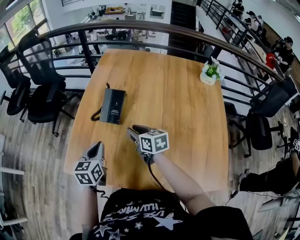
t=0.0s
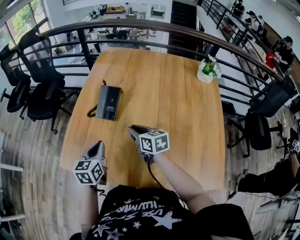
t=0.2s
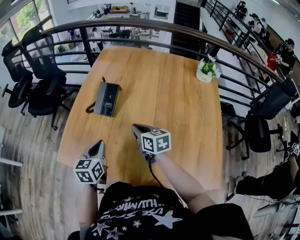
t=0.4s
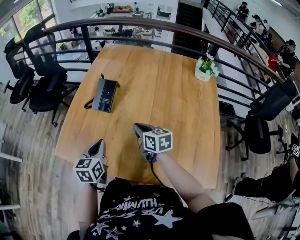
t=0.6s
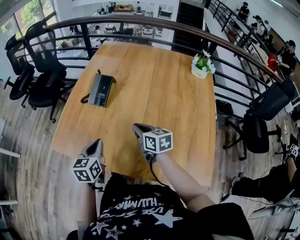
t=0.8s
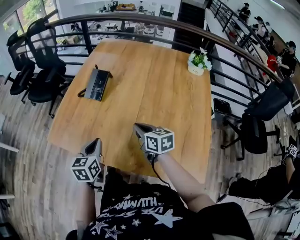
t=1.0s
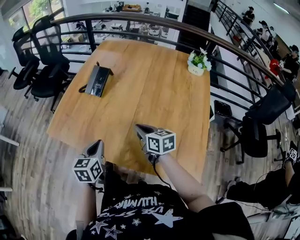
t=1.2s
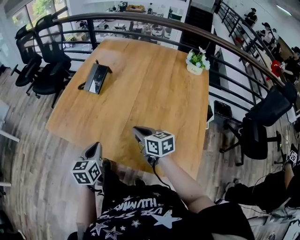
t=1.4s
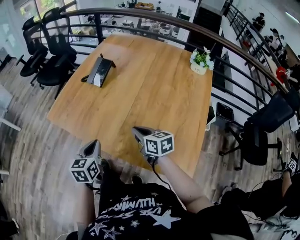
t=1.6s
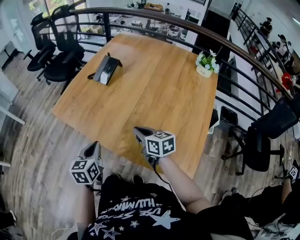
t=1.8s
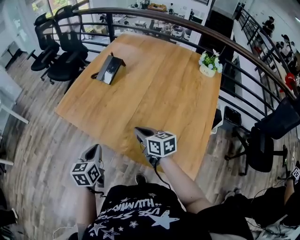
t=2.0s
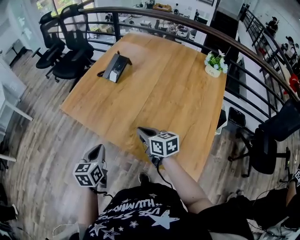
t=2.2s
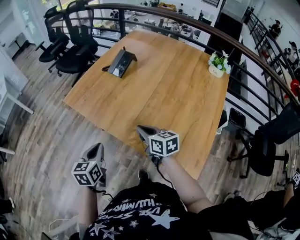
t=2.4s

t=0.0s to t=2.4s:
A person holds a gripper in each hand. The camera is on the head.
t=0.0s to t=1.2s: Both grippers move backward and to the right, roughly 25 cm.
t=1.2s to t=2.4s: Both grippers travel together backward and to the left, roughly 15 cm.

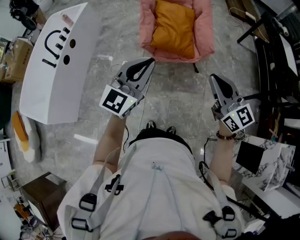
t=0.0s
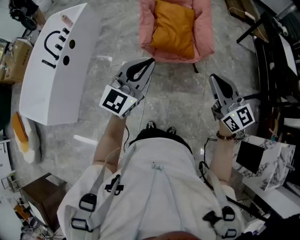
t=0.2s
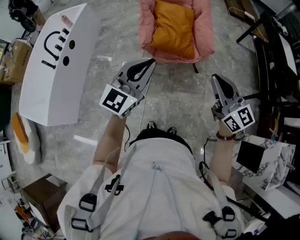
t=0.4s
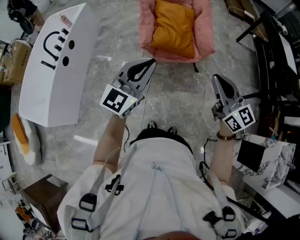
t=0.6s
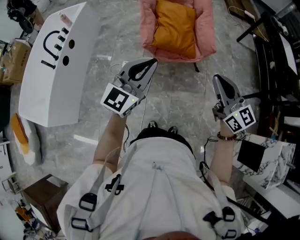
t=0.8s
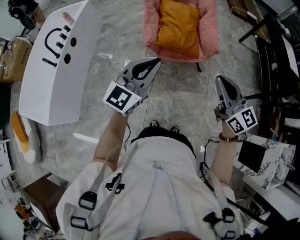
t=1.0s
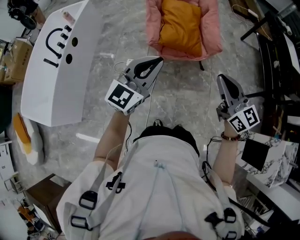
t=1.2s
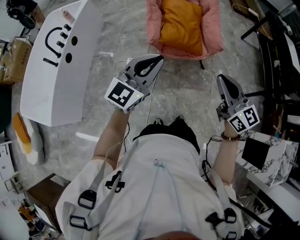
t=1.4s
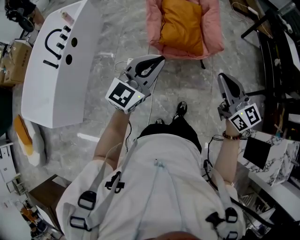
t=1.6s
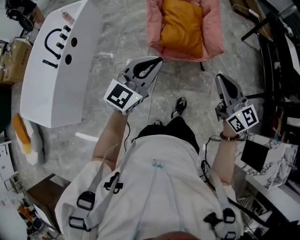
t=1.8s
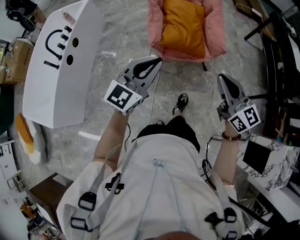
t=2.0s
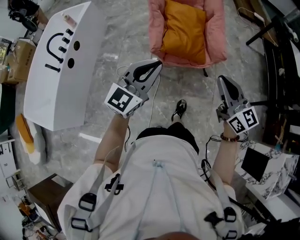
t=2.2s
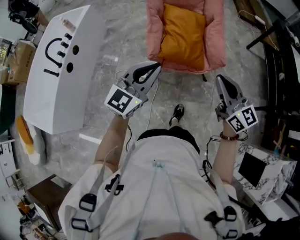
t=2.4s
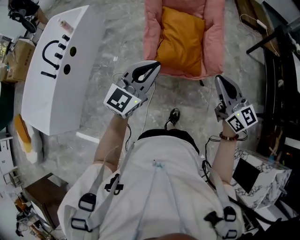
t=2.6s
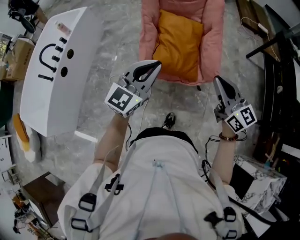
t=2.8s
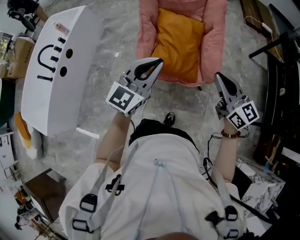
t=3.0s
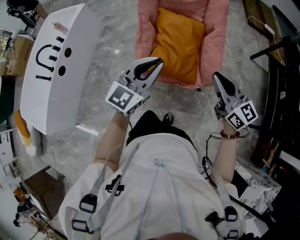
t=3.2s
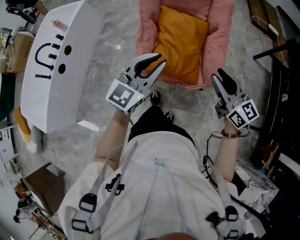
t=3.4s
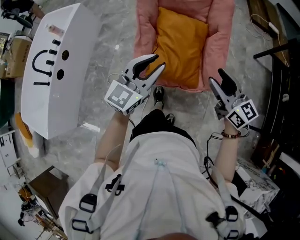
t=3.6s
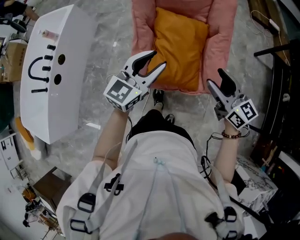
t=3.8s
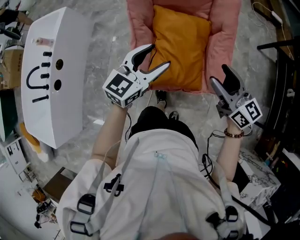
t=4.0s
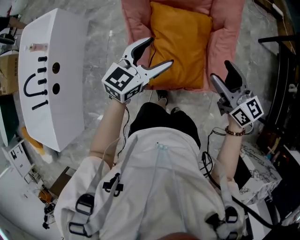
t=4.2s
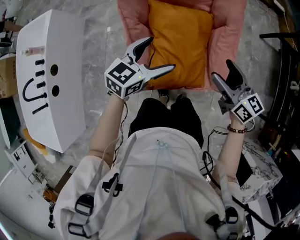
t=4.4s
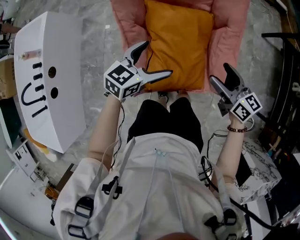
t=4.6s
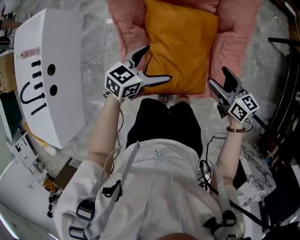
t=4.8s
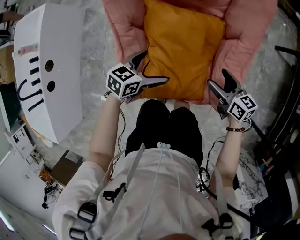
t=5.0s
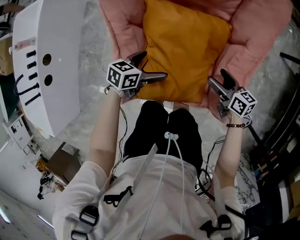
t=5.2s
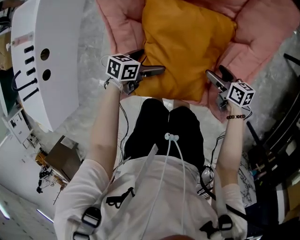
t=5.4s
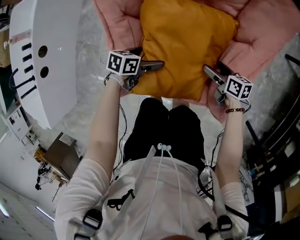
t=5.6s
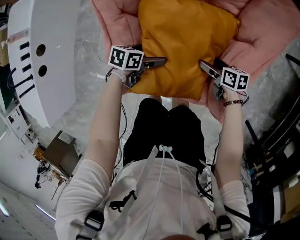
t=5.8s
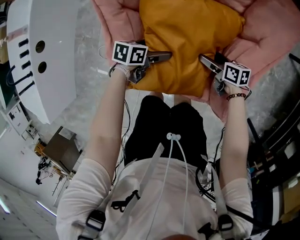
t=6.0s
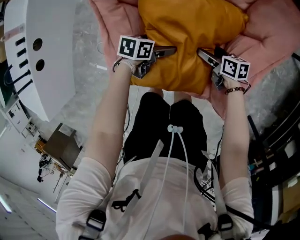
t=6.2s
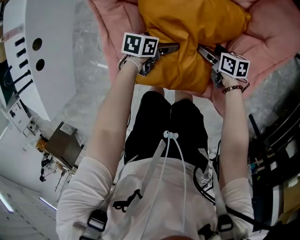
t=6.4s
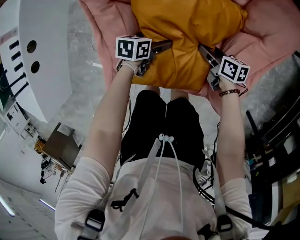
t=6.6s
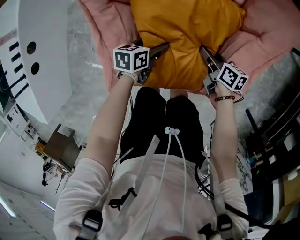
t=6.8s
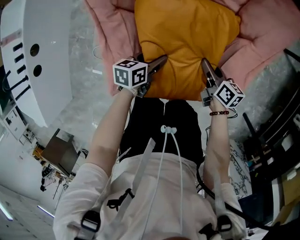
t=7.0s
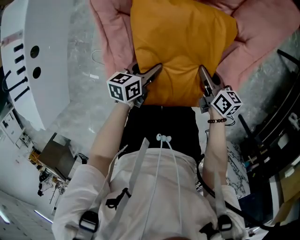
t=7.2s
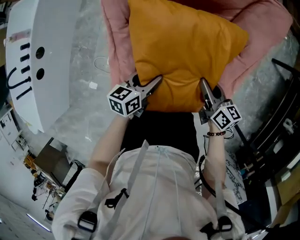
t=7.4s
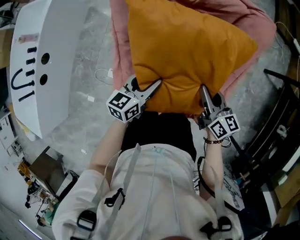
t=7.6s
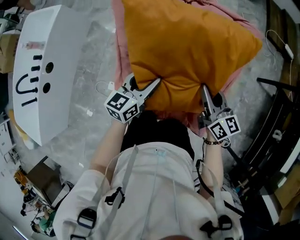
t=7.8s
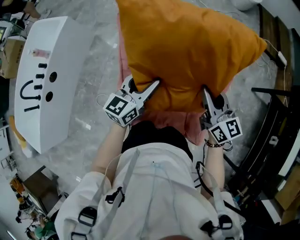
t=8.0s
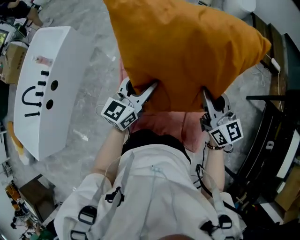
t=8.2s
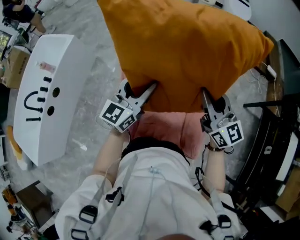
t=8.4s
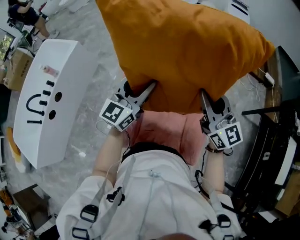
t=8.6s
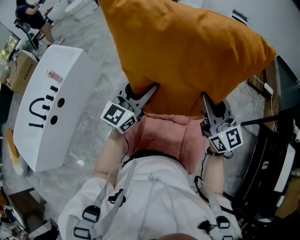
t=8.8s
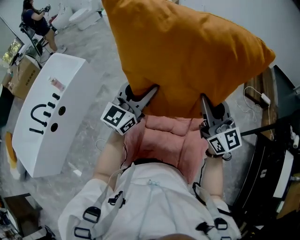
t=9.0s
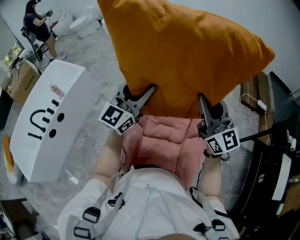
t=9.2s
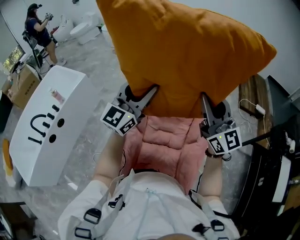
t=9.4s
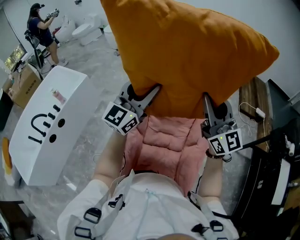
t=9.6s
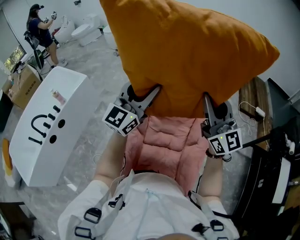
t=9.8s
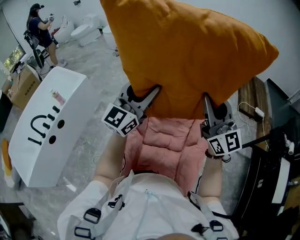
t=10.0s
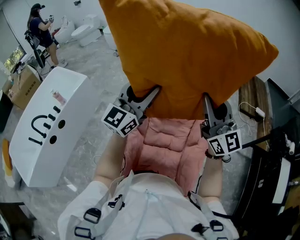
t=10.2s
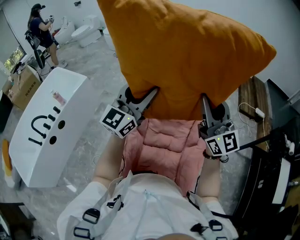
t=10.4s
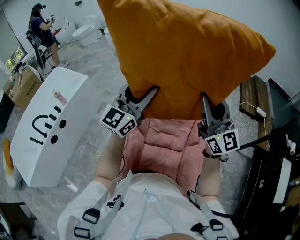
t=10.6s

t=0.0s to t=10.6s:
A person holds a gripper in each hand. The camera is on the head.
t=0.0s to t=1.6s: Both grippers move to the left, some 5 cm.
t=1.6s to t=3.0s: The right gripper is displaced forward by some 30 cm. Meanwhile the left gripper is displaced forward and to the right by approximately 30 cm.
t=3.0s to t=4.6s: Both grippers travel together forward and downward, roughly 40 cm. The left gripper turns by about 40 degrees, and opens its fingers, while the right gripper changes its angle by approximately 30 degrees, and opens its fingers.
t=4.6s to t=6.0s: The two grippers go approximately 35 cm downward. The right gripper turns by about 40 degrees; the left gripper twists some 40 degrees counterclockwise, seen from behind.
t=6.0s to t=7.6s: Both grippers travel together upward, roughly 25 cm. The left gripper changes its angle by approximately 40 degrees, and closes up, while the right gripper swivels about 40 degrees, and closes.
t=7.6s to t=9.0s: Both grippers move upward, roughly 40 cm. The right gripper angles its fingers upward, by roughly 30 degrees, while the left gripper points its fingers some 40 degrees further upward.
t=9.0s to t=10.6s: The two grippers go roughly 10 cm upward.

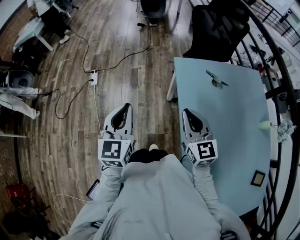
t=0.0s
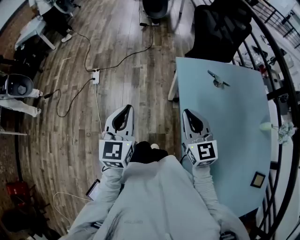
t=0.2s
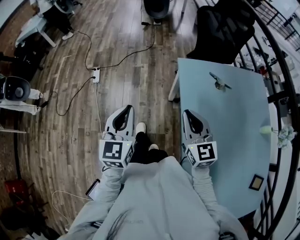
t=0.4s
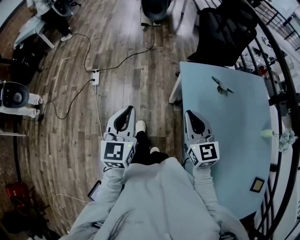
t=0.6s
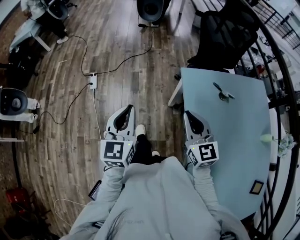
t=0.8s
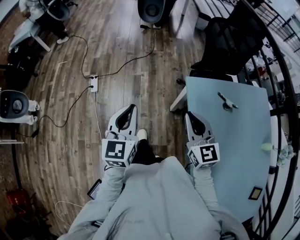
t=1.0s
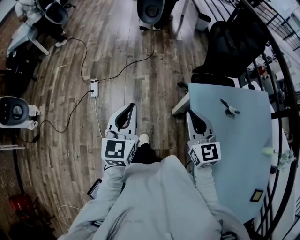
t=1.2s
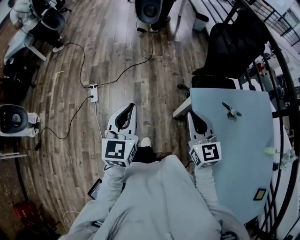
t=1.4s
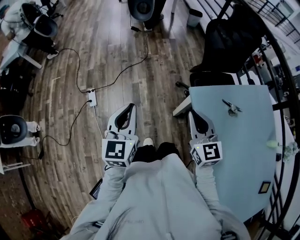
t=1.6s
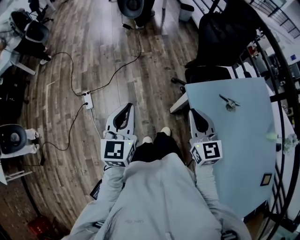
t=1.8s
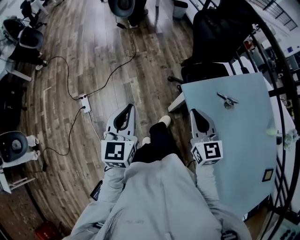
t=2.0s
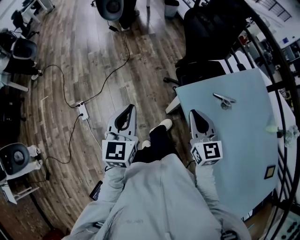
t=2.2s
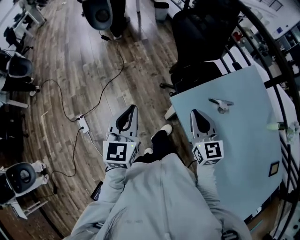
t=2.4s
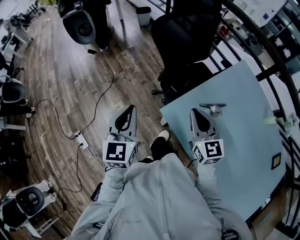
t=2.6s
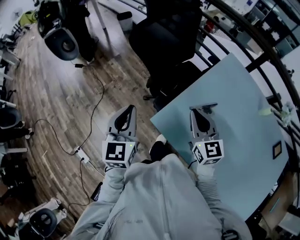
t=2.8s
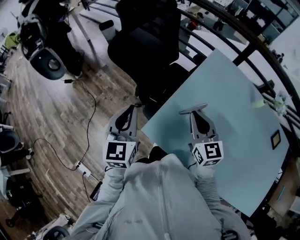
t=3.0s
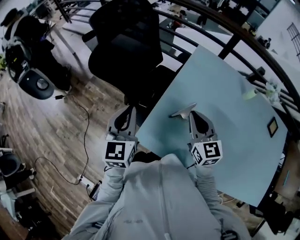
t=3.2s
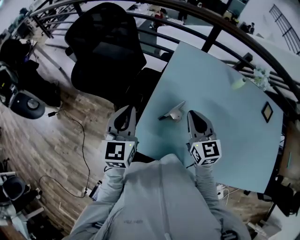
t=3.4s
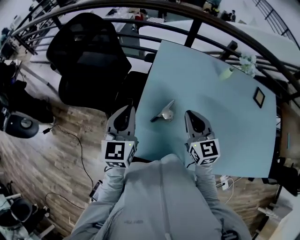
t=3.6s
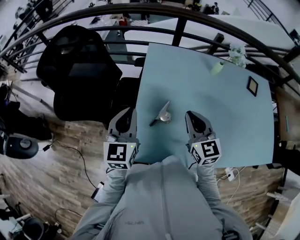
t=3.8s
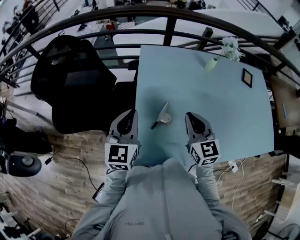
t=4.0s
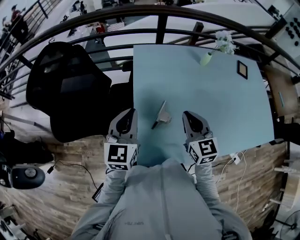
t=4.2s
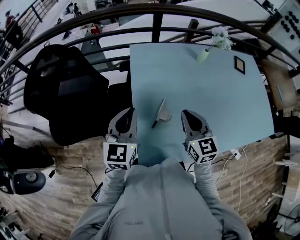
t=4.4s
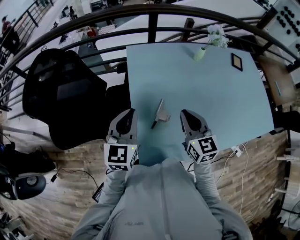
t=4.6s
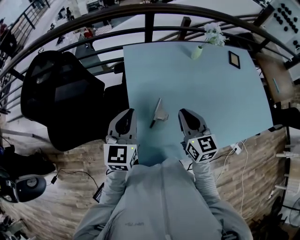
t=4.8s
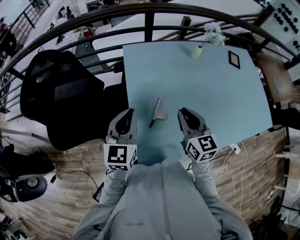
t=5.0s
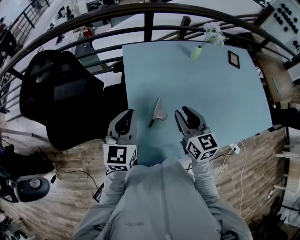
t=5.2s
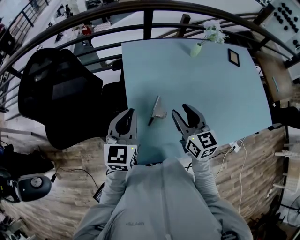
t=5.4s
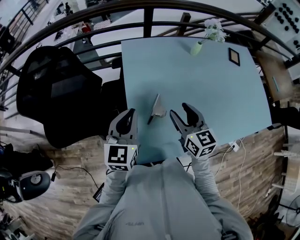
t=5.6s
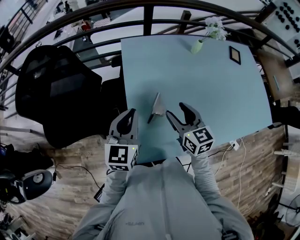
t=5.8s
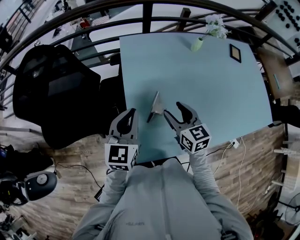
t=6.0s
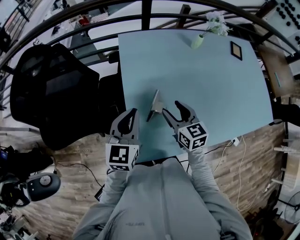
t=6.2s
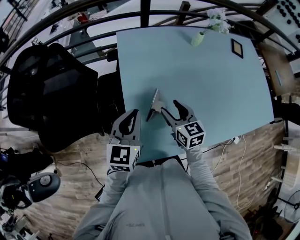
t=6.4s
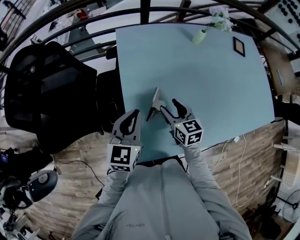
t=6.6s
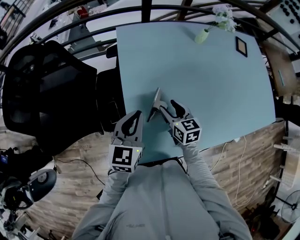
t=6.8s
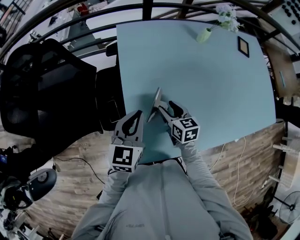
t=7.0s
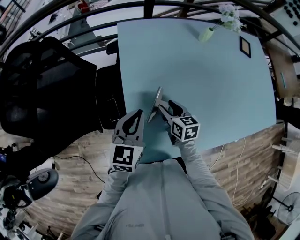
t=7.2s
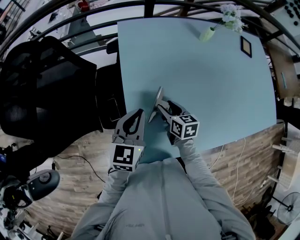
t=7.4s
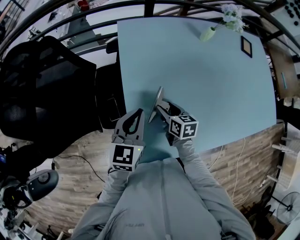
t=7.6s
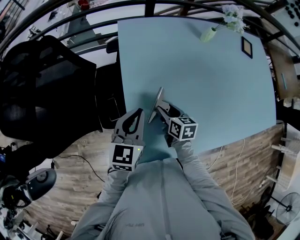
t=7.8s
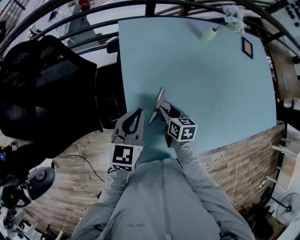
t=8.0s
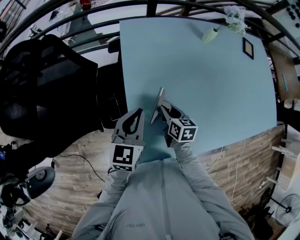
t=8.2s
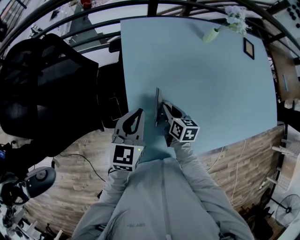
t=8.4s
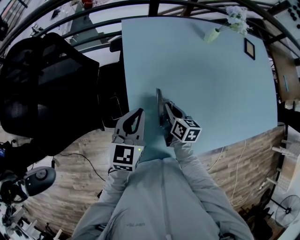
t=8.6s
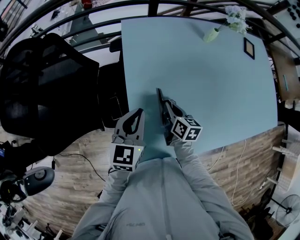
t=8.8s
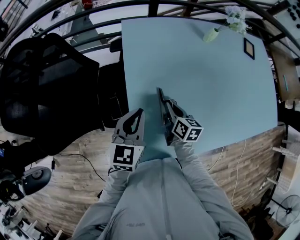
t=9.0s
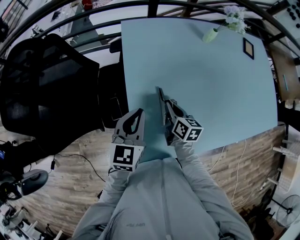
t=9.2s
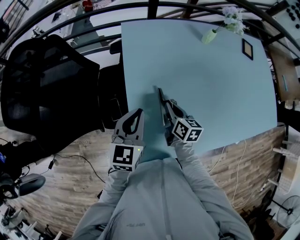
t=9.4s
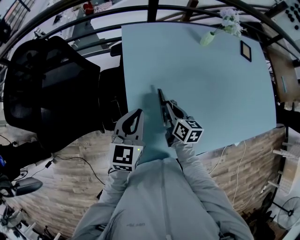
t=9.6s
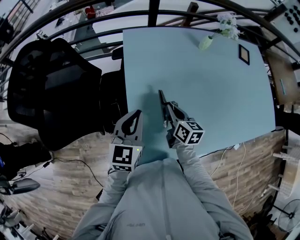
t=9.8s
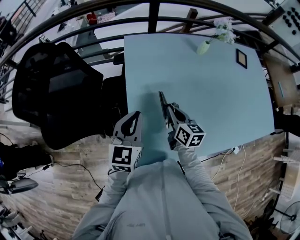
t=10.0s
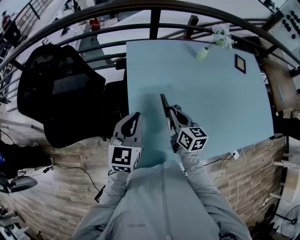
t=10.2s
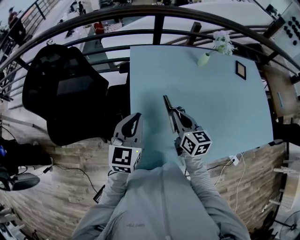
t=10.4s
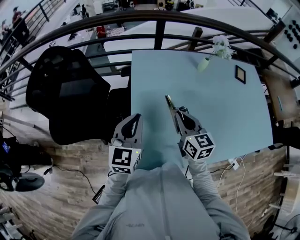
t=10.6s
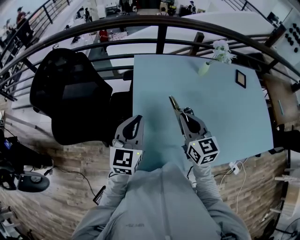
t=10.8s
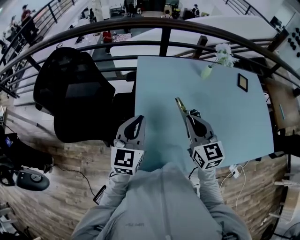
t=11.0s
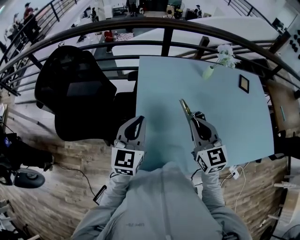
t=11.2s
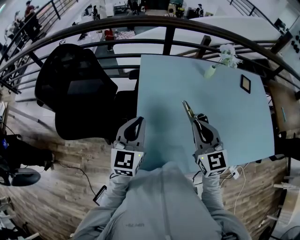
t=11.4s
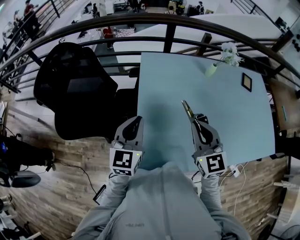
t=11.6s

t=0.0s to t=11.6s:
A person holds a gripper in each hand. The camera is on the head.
t=0.0s to t=1.4s: The two grippers go approximately 20 cm forward.
t=1.4s to t=2.8s: The left gripper changes place by about 35 cm, and turns by roughly 40 degrees, while the right gripper ends up roughly 25 cm from where it was, and rotates approximately 40 degrees.
t=2.8s to t=4.4s: The left gripper shifts by roughly 30 cm, and swivels about 60 degrees. Meanwhile the right gripper shifts by about 15 cm, and swivels roughly 50 degrees.
t=4.4s to t=5.8s: The right gripper opens up.
t=5.8s to t=7.2s: The left gripper shifts approximately 5 cm downward. The right gripper moves downward, about 15 cm, and changes its angle by approximately 20 degrees.
t=7.2s to t=8.8s: The right gripper closes its fingers.
t=8.8s to t=10.2s: The left gripper is displaced upward by approximately 5 cm, while the right gripper moves upward, approximately 10 cm.
t=10.2s to t=11.6s: The right gripper is displaced upward by roughly 15 cm, and rotates some 40 degrees.
